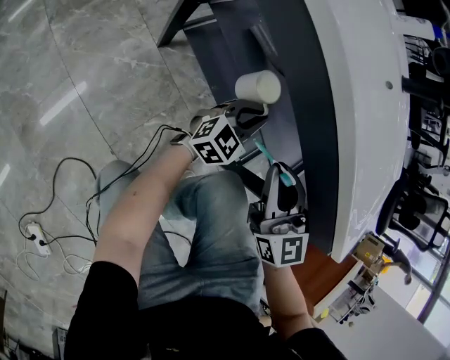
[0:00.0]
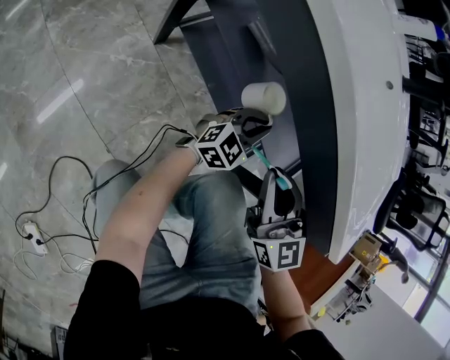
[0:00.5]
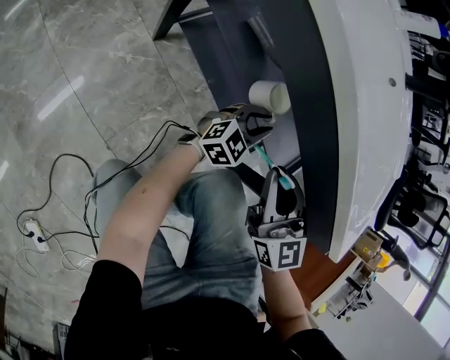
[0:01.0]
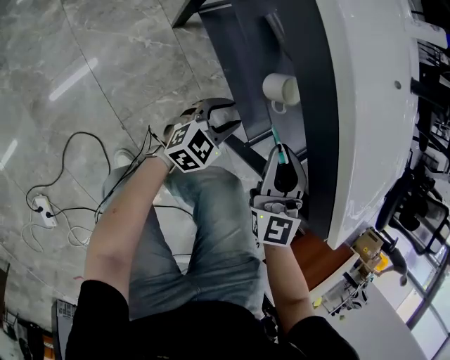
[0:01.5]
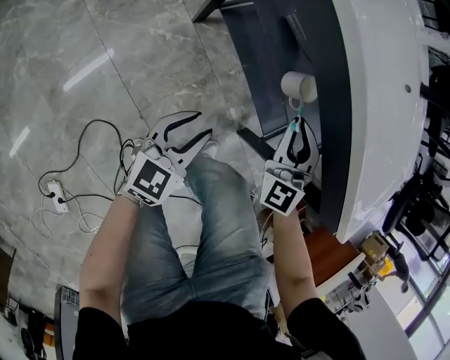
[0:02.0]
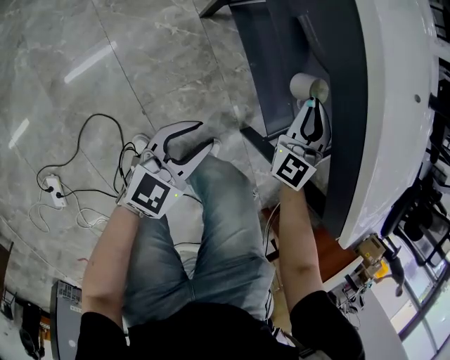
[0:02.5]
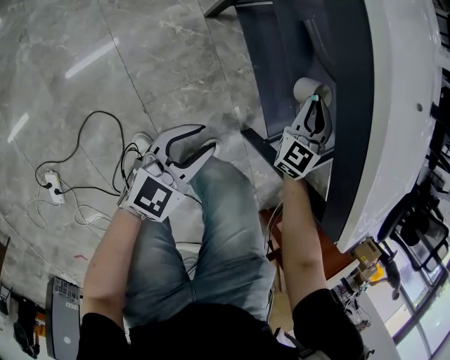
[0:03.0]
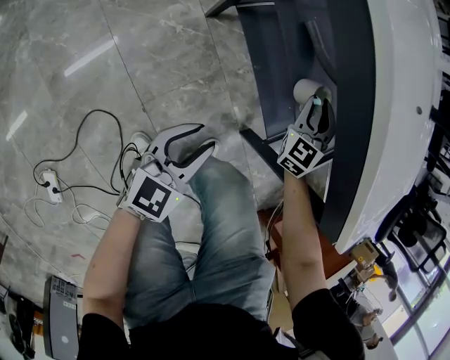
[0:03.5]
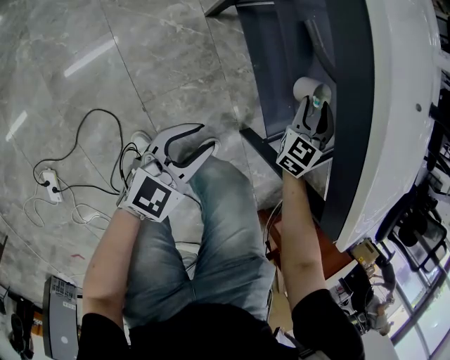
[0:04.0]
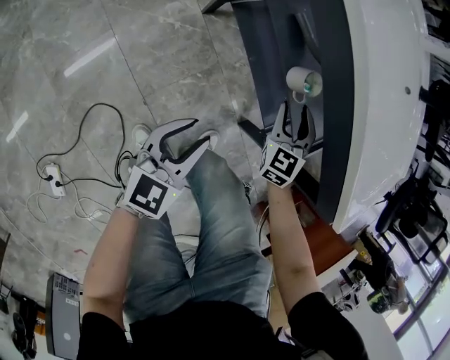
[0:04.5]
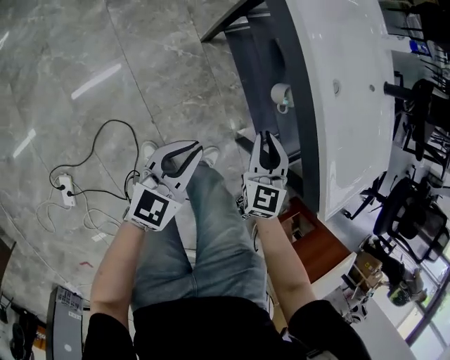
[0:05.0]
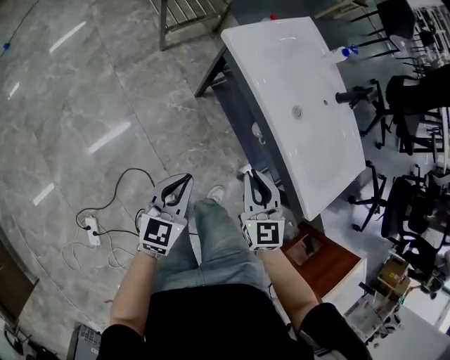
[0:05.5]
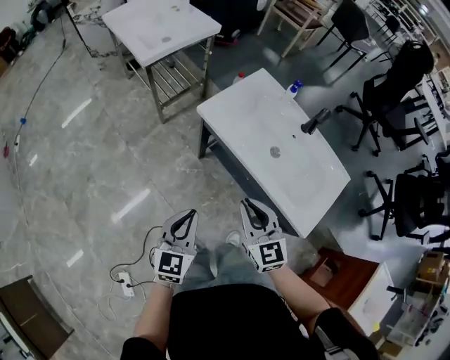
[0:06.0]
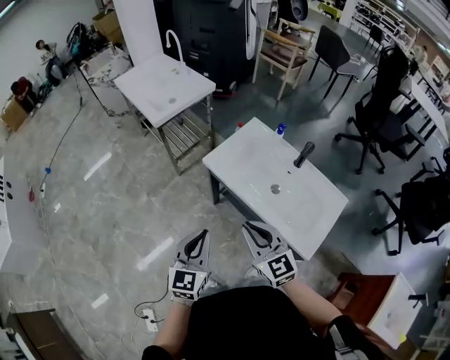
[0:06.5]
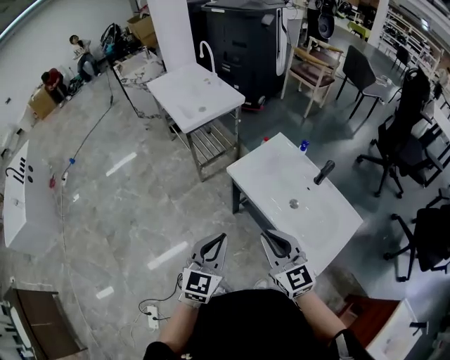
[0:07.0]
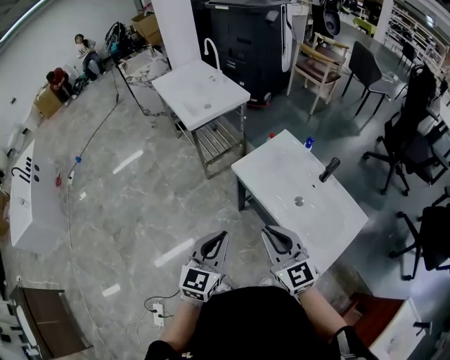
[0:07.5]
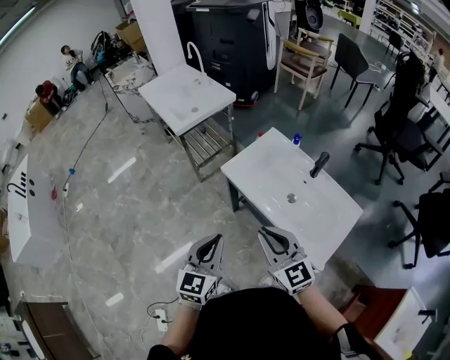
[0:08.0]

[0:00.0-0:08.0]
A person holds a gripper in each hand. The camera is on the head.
0.0 to 2.0 s: The right gripper changes its angle by roughly 30 degrees. Meanwhile the left gripper is displaced backward and to the left by about 25 cm, changes its angle by some 20 degrees, and opens its fingers.
2.0 to 4.0 s: The right gripper moves downward and forward, some 15 cm, turns by approximately 20 degrees, and opens.
4.0 to 6.0 s: Both grippers travel together upward, approximately 40 cm. The right gripper swivels approximately 40 degrees, and closes. The left gripper closes.
6.0 to 8.0 s: Both grippers travel together upward, about 15 cm.

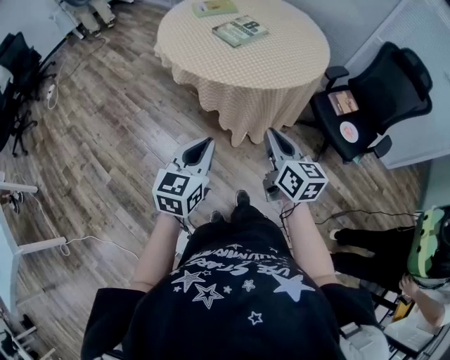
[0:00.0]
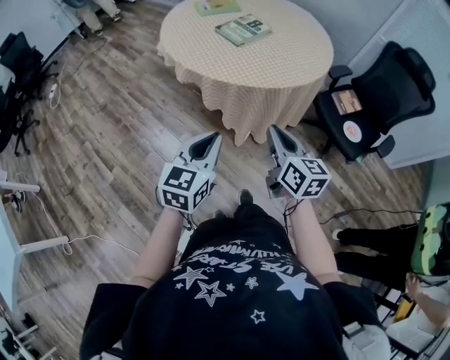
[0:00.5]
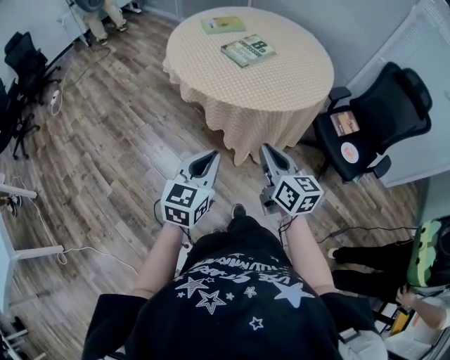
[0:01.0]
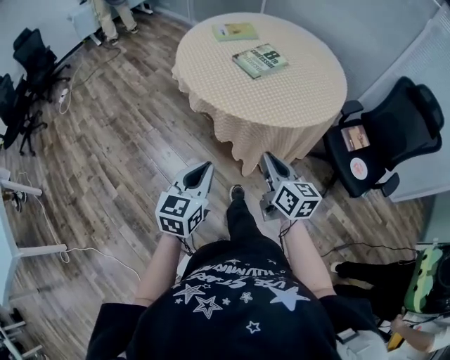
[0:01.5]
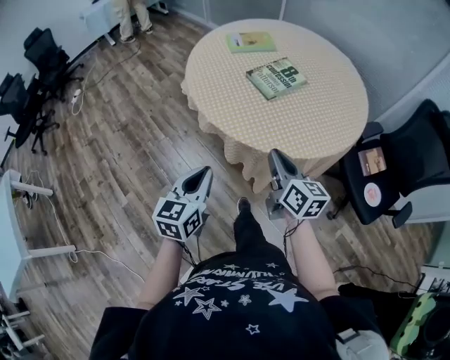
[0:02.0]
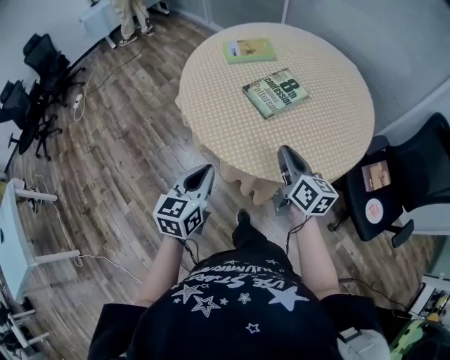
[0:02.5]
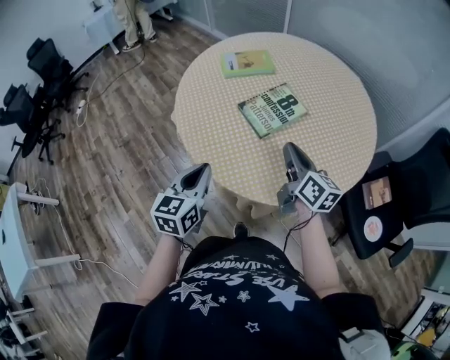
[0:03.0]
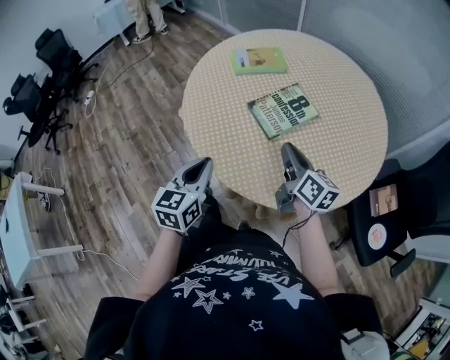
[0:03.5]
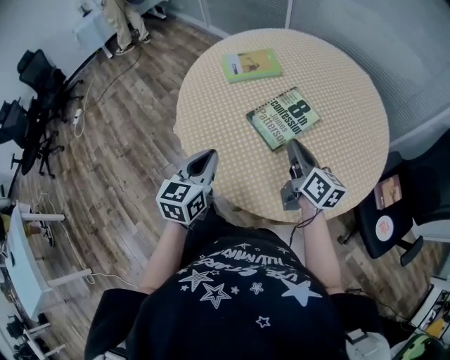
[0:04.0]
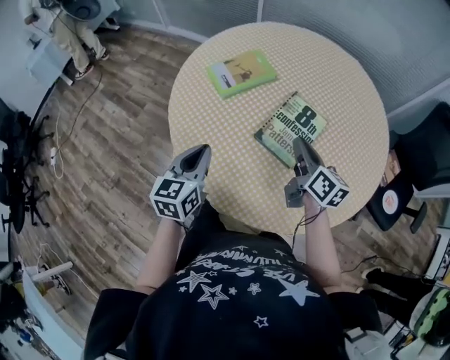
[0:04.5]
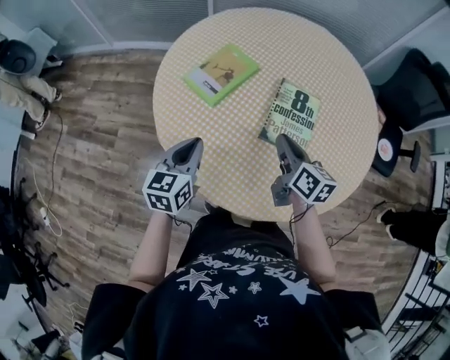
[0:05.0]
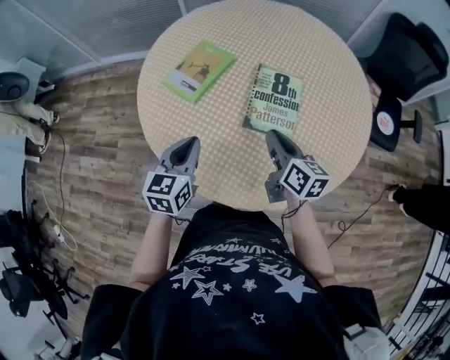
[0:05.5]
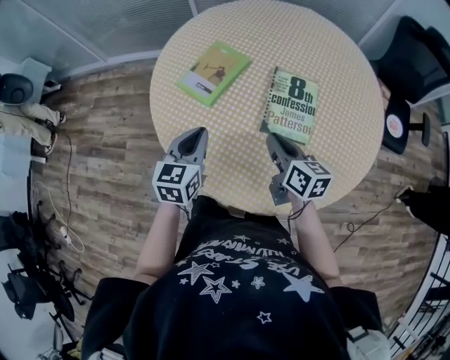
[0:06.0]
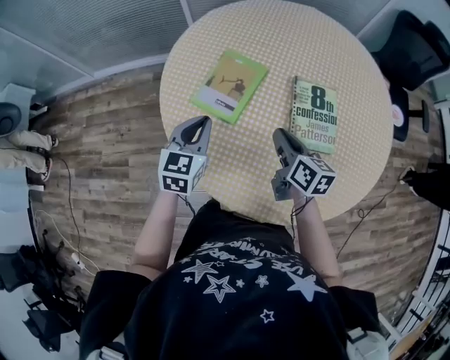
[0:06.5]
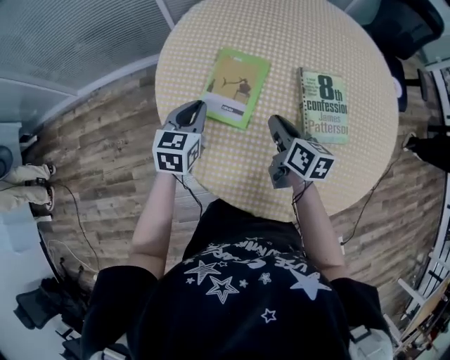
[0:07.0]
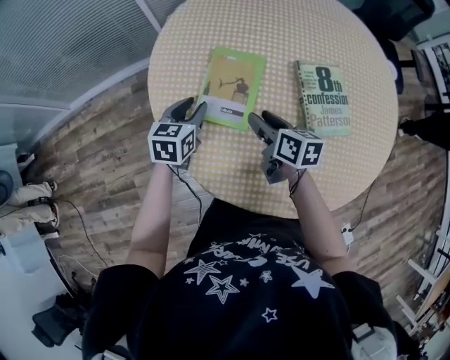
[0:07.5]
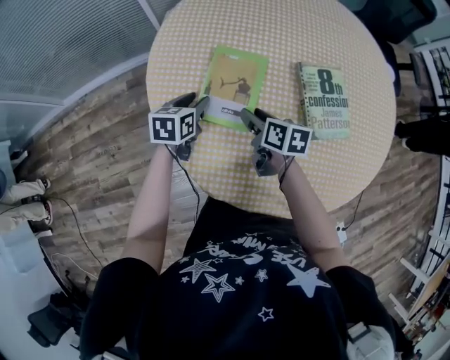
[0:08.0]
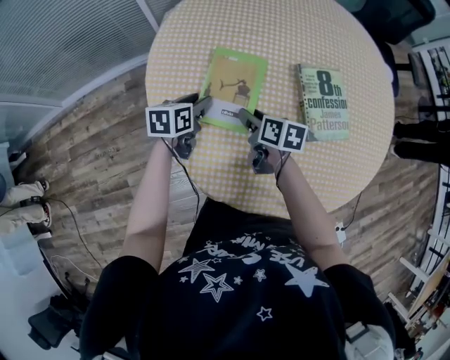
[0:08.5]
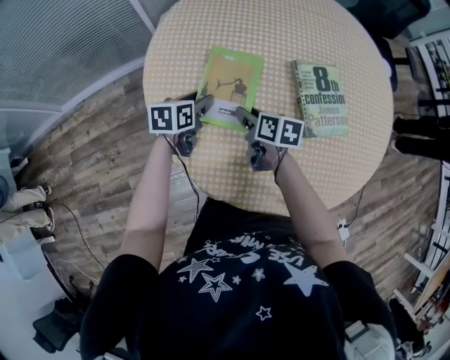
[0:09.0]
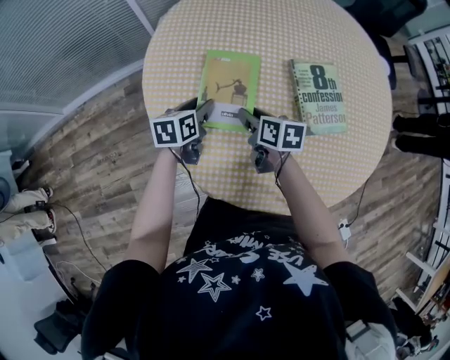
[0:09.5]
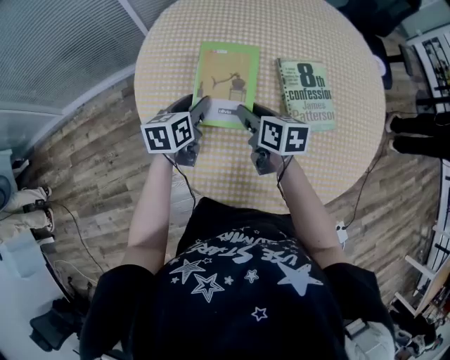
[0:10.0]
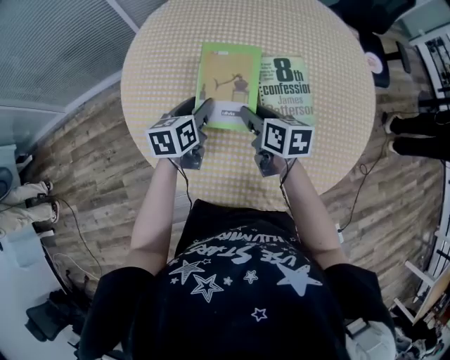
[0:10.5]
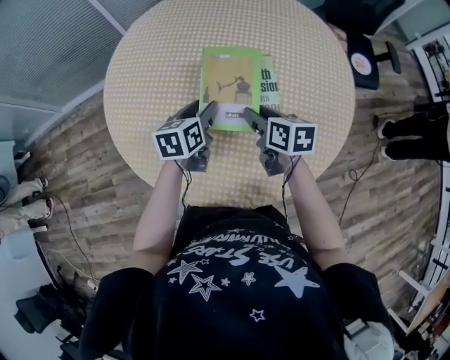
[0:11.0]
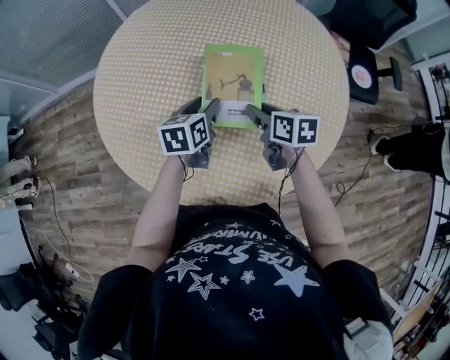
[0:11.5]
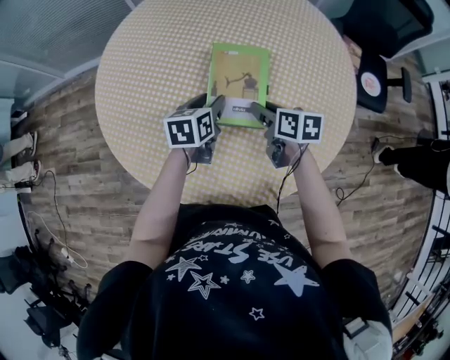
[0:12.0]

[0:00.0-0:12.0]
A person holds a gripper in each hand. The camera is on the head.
0.0 to 2.0 s: The right gripper moves forward, about 20 cm. The left gripper heads forward and to the left, covering approximately 20 cm.
2.0 to 4.0 s: The grippers both shift forward by some 30 cm.
4.0 to 6.0 s: The right gripper moves approximately 20 cm, and changes its angle by some 30 degrees. The left gripper shifts by approximately 30 cm, and rotates some 40 degrees.
6.0 to 8.0 s: The right gripper moves to the left, forward and downward, roughly 25 cm, rotates some 30 degrees, and opens up, while the left gripper travels forward, to the left and downward by roughly 30 cm, rotates approximately 30 degrees, and opens up.
8.0 to 10.0 s: The right gripper ends up approximately 5 cm from where it was; the left gripper moves upward and to the right, about 5 cm.
10.0 to 12.0 s: The grippers both shift to the right by about 25 cm.

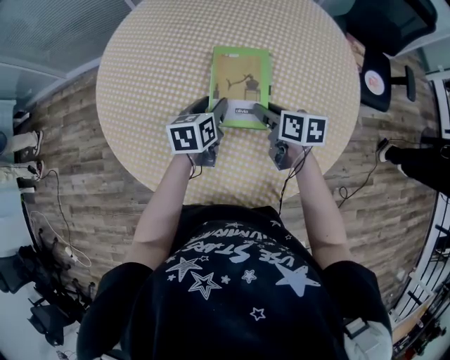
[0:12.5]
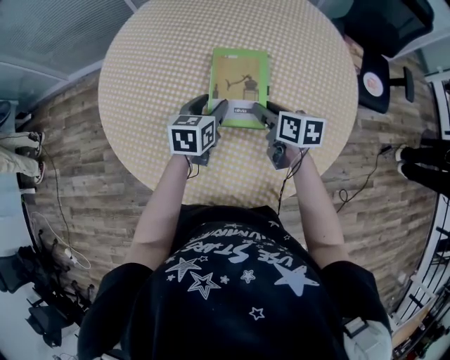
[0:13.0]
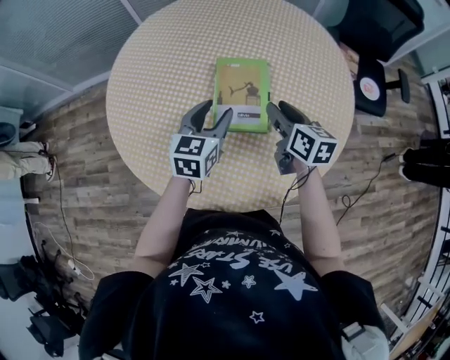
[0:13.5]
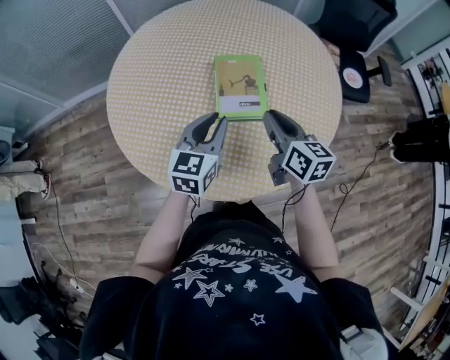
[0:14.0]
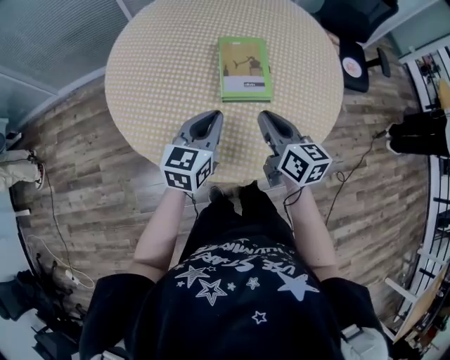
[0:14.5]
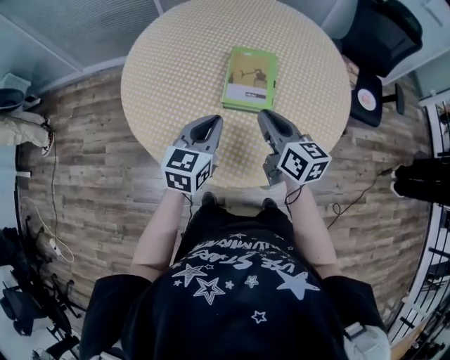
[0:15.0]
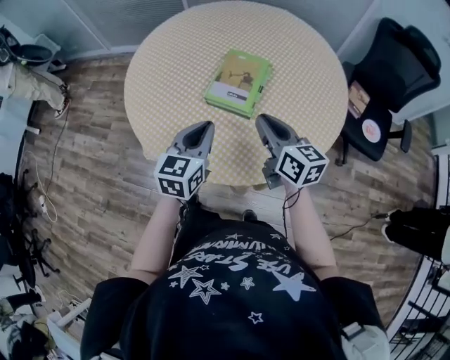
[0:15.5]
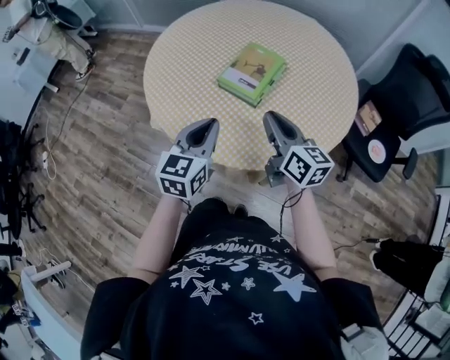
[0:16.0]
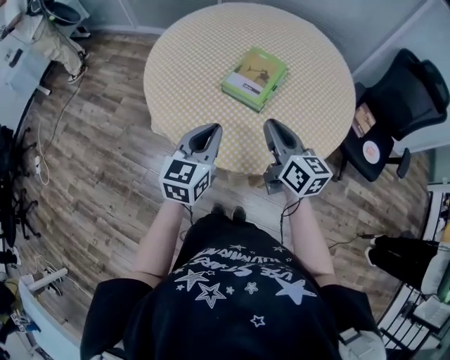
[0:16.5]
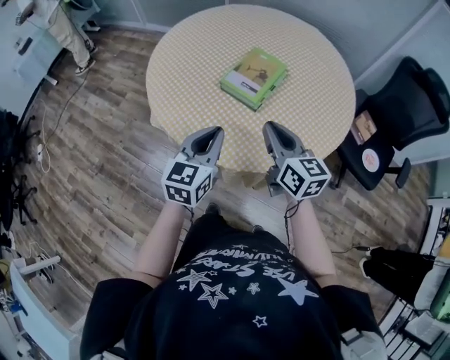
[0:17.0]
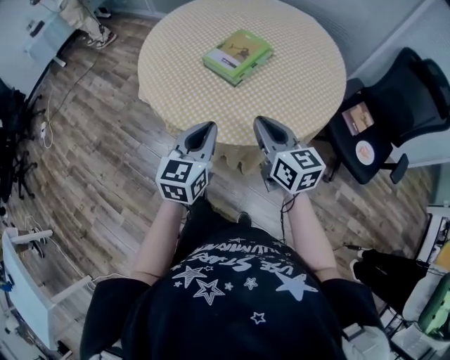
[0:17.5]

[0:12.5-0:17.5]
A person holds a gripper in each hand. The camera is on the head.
12.5 to 15.0 s: The right gripper is displaced upward and backward by about 20 cm, rotates about 30 degrees, and closes up. Meanwhile the left gripper shifts some 20 cm backward and upward, changes its angle by some 30 degrees, and closes.
15.0 to 17.5 s: The left gripper moves about 30 cm, and rotates approximately 40 degrees, while the right gripper changes place by roughly 25 cm, and turns by roughly 40 degrees.

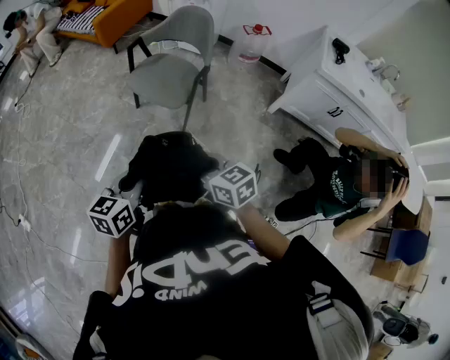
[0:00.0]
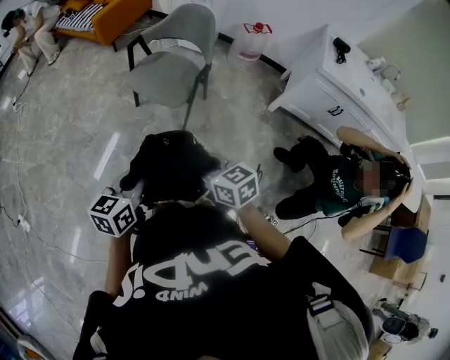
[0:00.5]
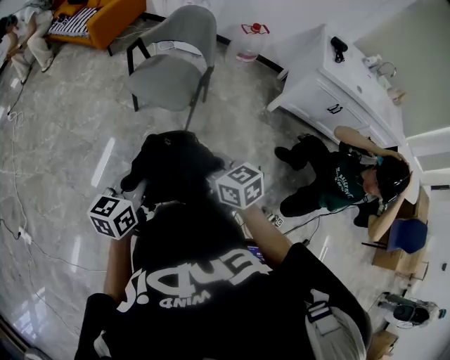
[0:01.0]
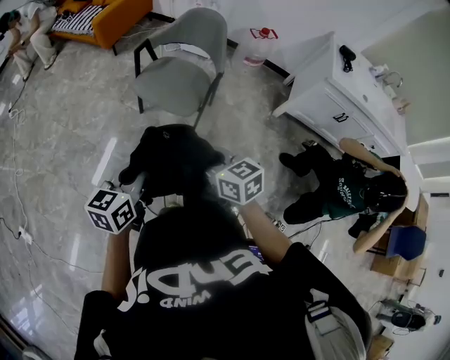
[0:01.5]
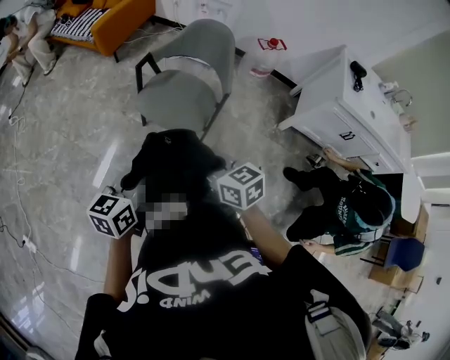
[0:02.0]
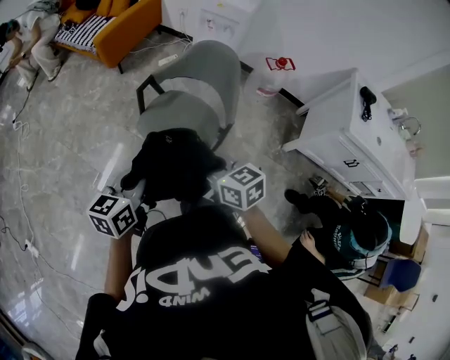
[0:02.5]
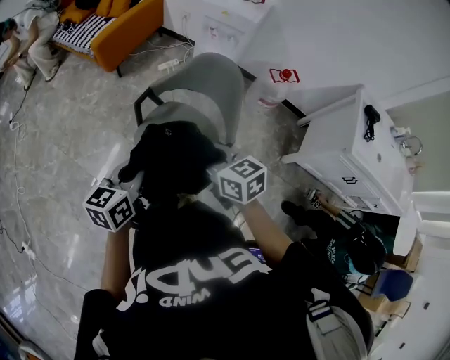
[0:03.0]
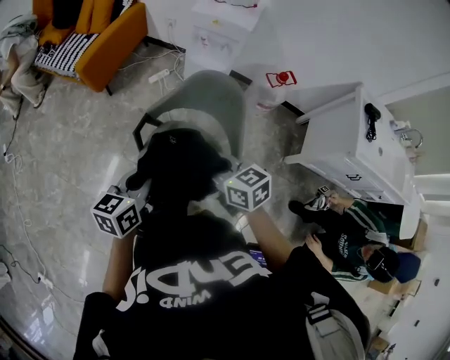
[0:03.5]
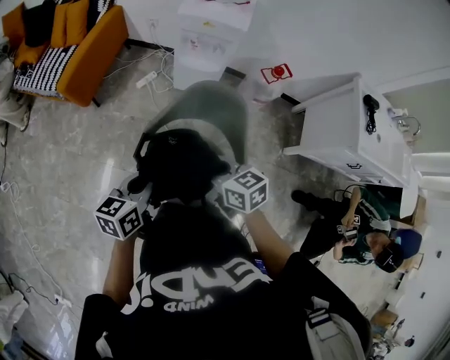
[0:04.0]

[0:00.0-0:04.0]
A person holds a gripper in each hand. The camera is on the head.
0.0 to 2.0 s: The grippers both shift forward by some 25 cm.
2.0 to 4.0 s: The two grippers travel together, forward, approximately 50 cm.
